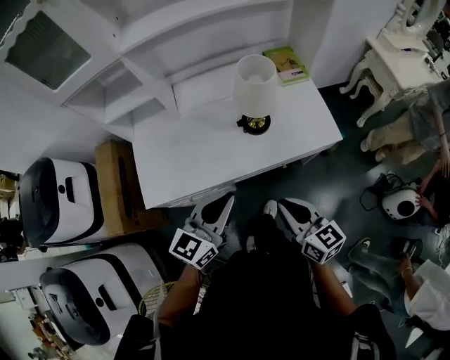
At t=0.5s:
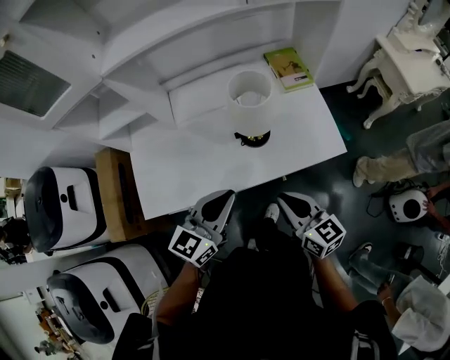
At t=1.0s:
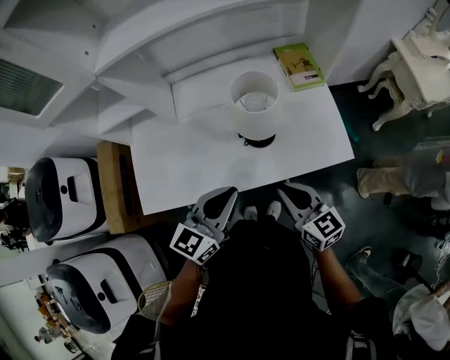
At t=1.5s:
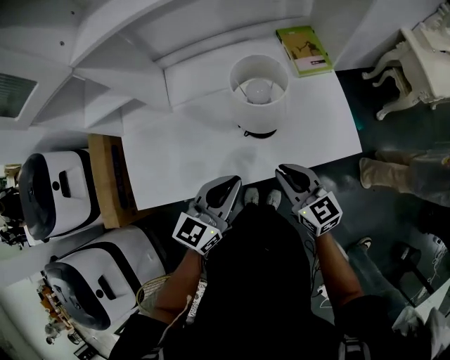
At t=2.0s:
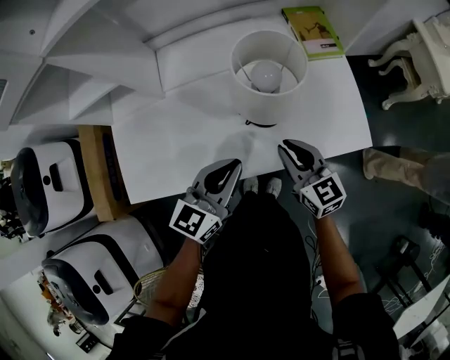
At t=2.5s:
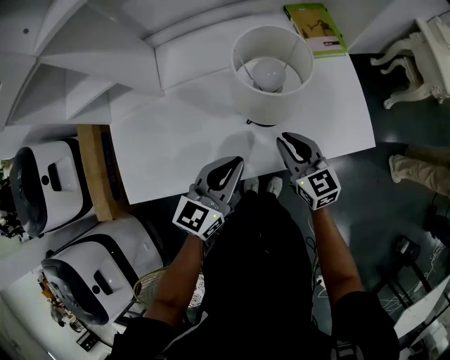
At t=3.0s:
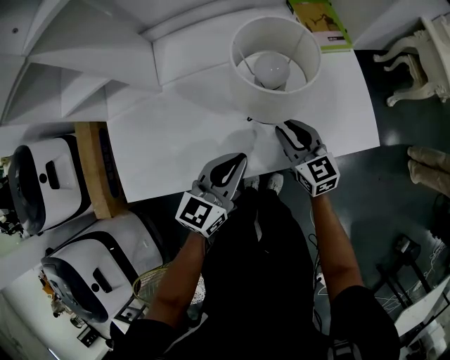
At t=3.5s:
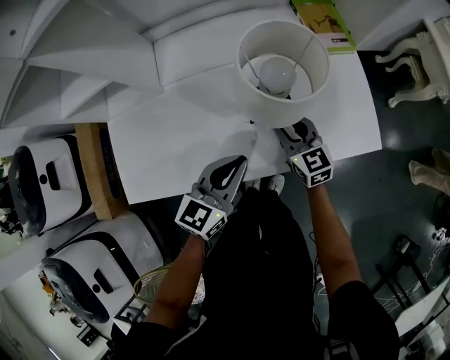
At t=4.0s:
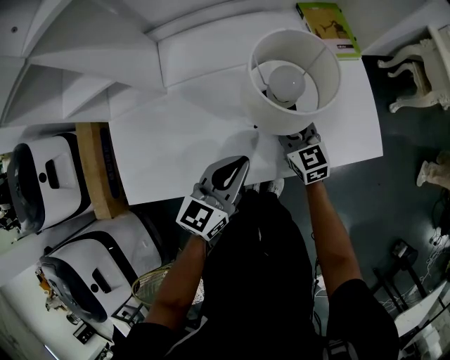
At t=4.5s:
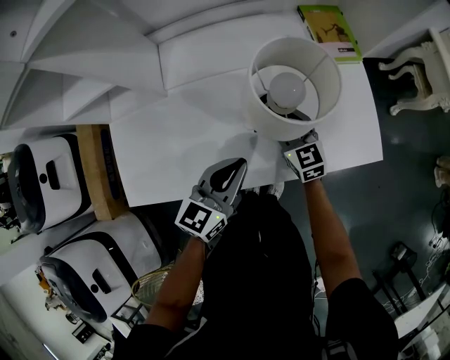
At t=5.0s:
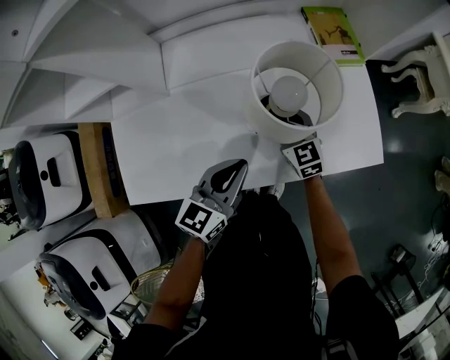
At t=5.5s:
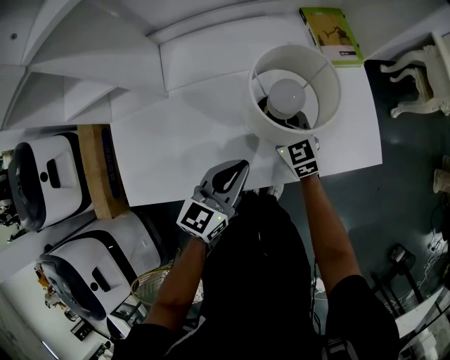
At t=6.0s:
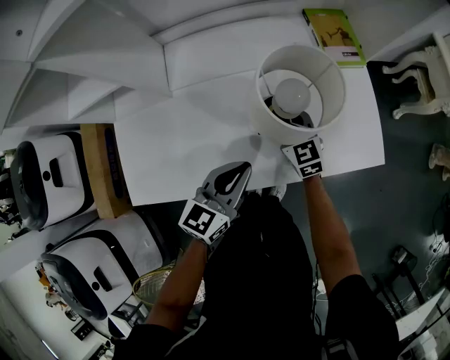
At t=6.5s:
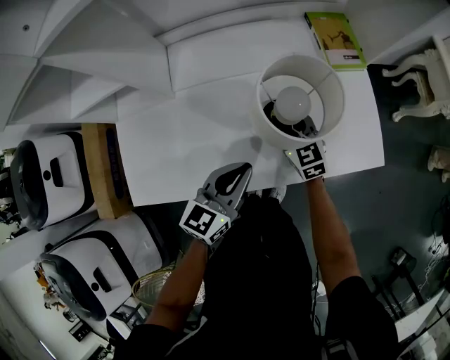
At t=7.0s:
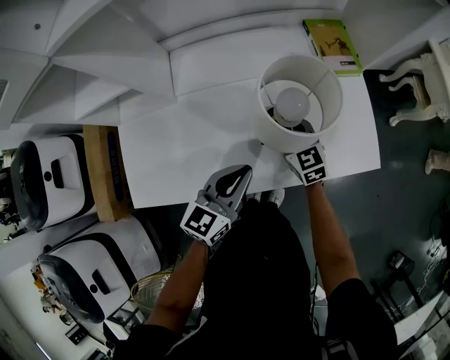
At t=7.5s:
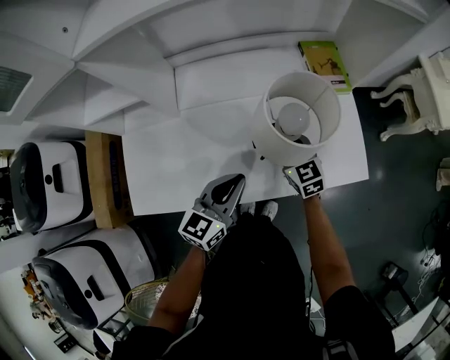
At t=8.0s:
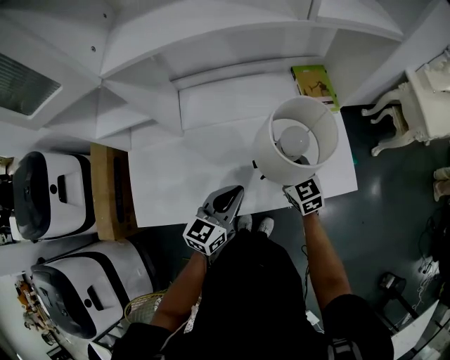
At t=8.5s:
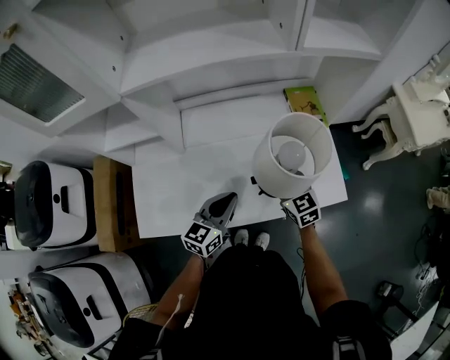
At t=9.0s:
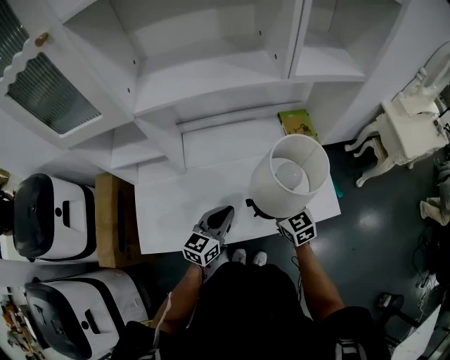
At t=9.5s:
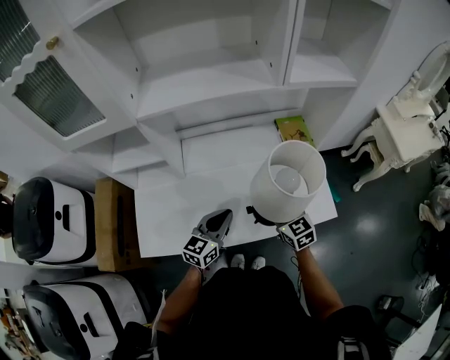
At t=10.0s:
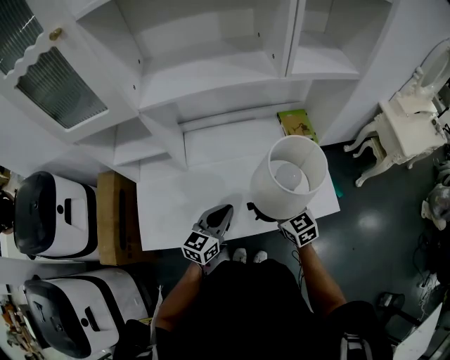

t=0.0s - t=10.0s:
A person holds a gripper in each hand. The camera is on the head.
t=0.0s - t=2.0s: Both grippers travel together forward and downward, some 25 cm.
t=2.0s - t=4.0s: The left gripper changes place by approximately 5 cm. The right gripper travels forward and downward by some 15 cm.
t=4.0s - t=6.0s: There are only small adjustments of the grippers.
t=6.0s - t=8.0s: The right gripper moves upward, some 10 cm.
t=8.0s - t=10.0s: The left gripper shifts by roughly 5 cm, while the right gripper is displaced upward and backward by about 10 cm.

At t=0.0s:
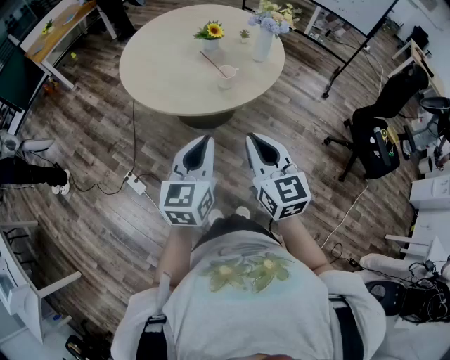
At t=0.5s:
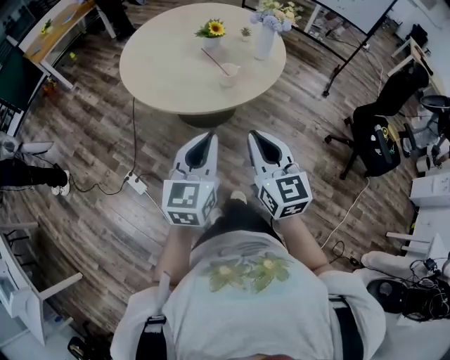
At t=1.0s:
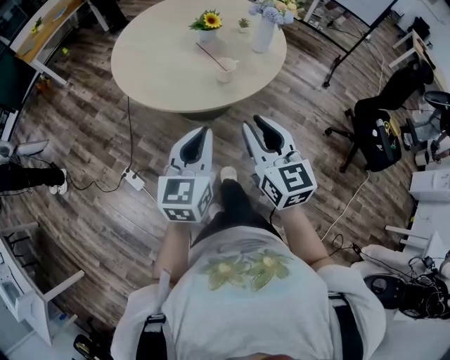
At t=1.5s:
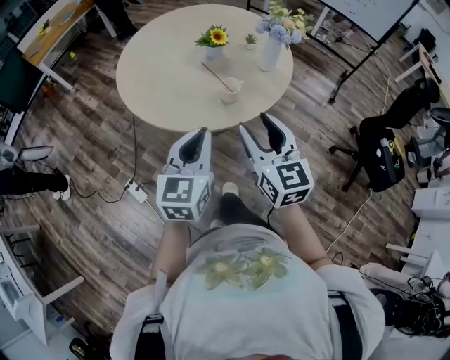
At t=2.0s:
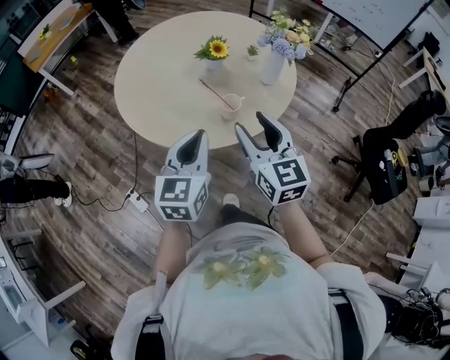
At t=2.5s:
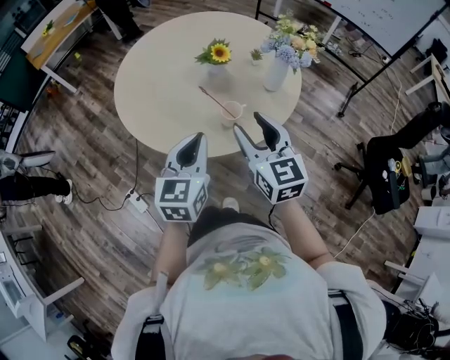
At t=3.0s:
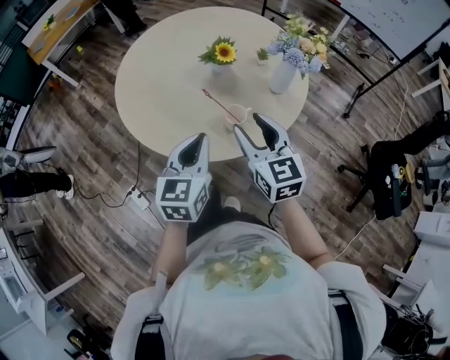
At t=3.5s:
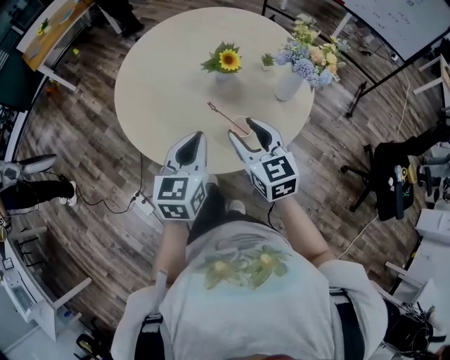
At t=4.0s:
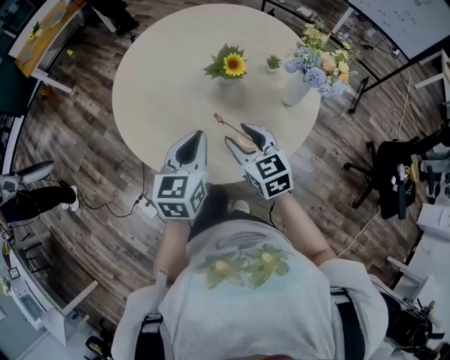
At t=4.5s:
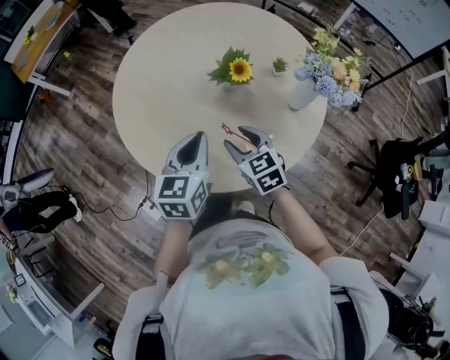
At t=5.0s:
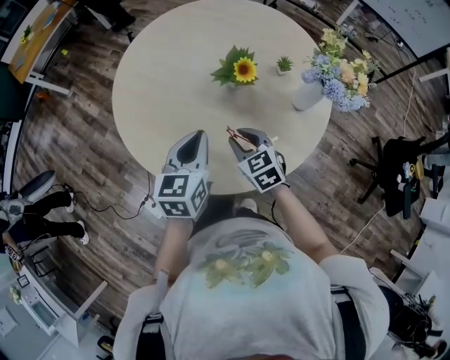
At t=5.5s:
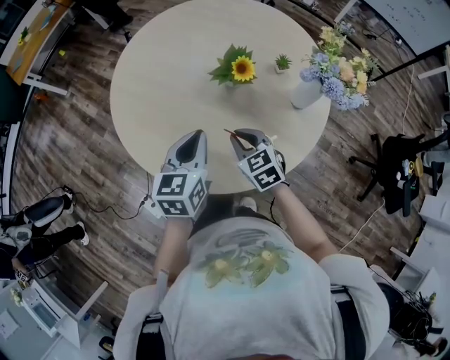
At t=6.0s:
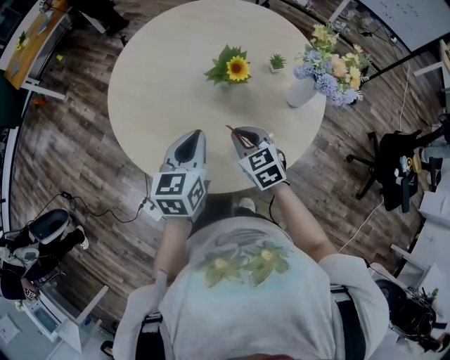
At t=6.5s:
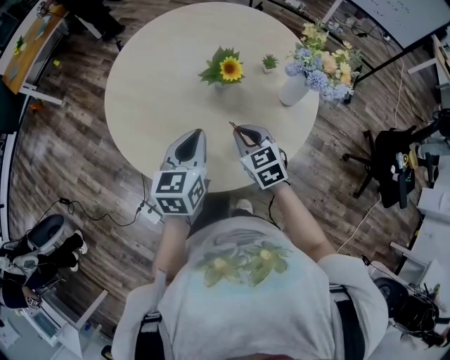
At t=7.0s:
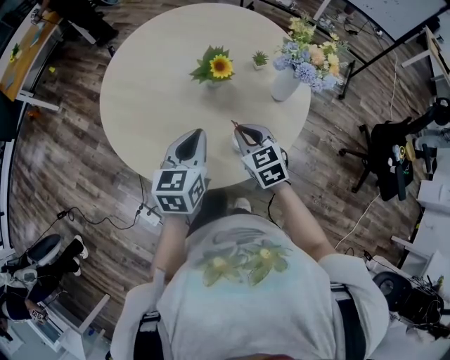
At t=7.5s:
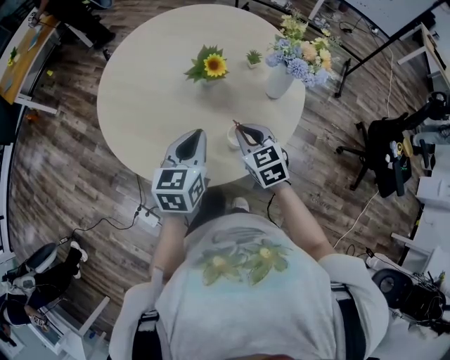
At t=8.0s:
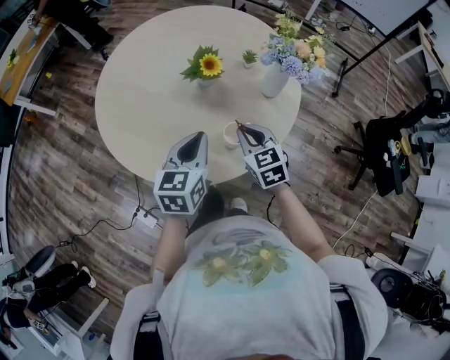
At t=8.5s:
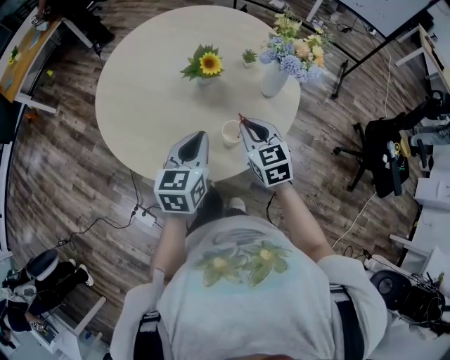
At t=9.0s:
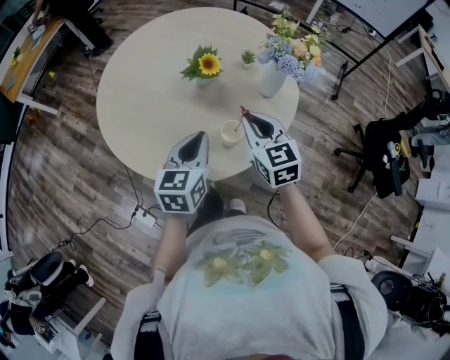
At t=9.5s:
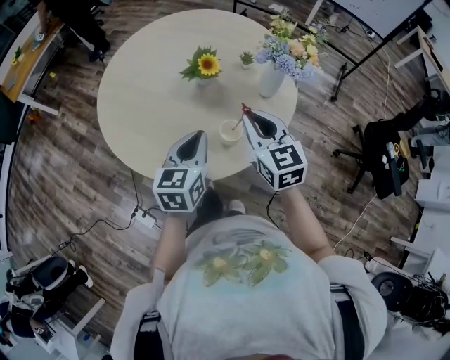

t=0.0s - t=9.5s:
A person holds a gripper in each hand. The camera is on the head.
t=0.0s - t=2.0s: Both grippers travel together forward, roughly 20 cm. The right gripper opens up.
t=2.0s - t=4.0s: The left gripper shifts roughly 20 cm forward, while the right gripper is displaced forward and downward by some 25 cm, and turns by some 20 degrees.
t=4.0s - t=5.5s: The right gripper goes some 10 cm downward and forward, and closes. The left gripper travels forward by some 5 cm.
t=5.5s - t=7.5s: Both grippers move to the right, approximately 5 cm.
t=7.5s - t=9.5s: The right gripper shifts some 10 cm upward.

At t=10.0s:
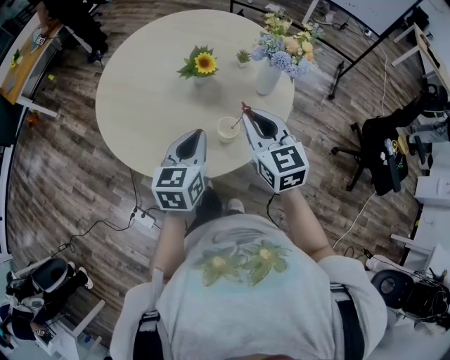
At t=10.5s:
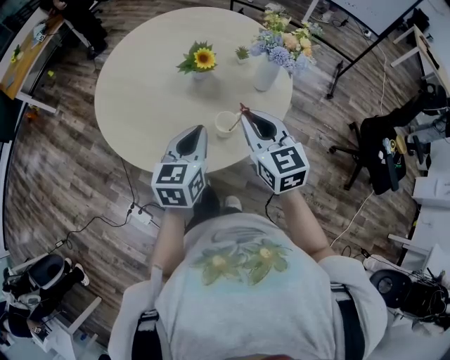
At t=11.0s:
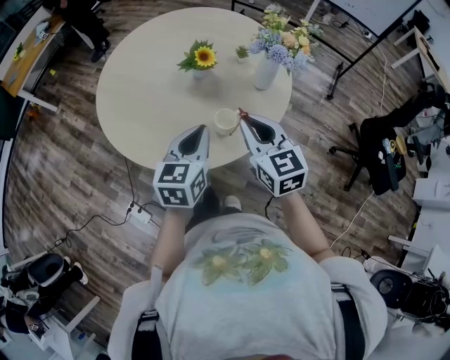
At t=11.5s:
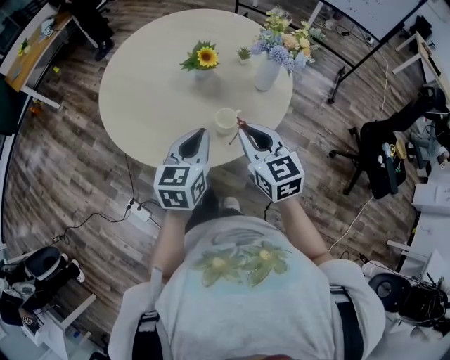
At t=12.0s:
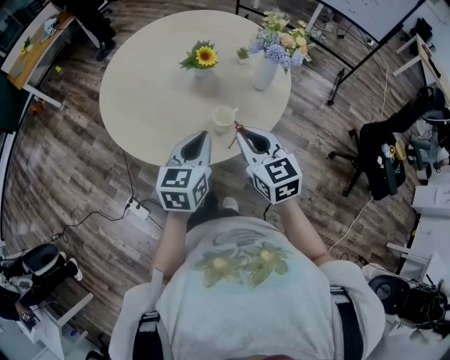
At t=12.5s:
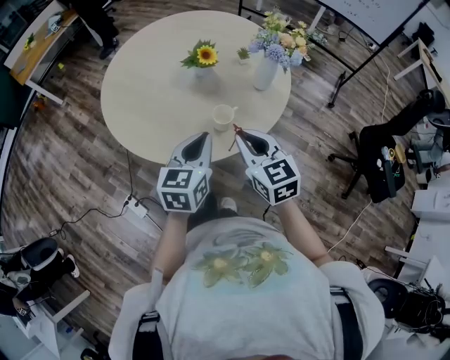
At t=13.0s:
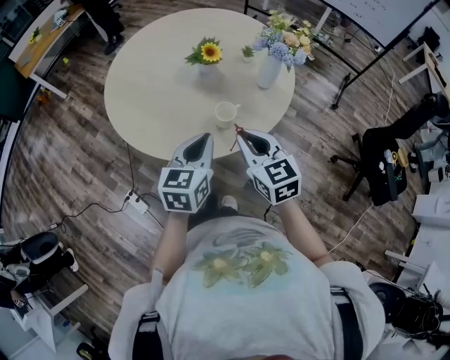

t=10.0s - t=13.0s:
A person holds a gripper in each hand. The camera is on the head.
t=10.0s - t=11.5s: The right gripper travels backward by approximately 5 cm; the left gripper ends up roughly 5 cm from where it was.
t=11.5s - t=13.0s: The grippers stay close to where they were, moving slightly.

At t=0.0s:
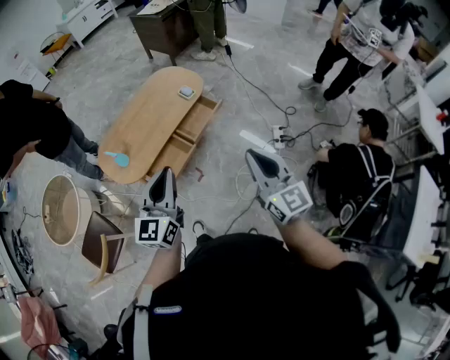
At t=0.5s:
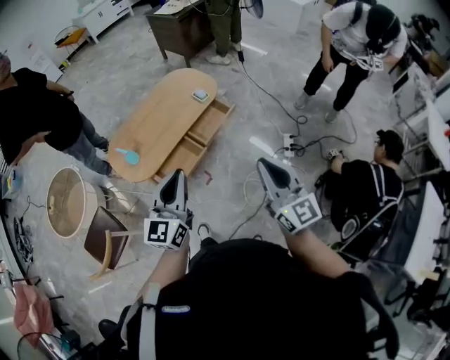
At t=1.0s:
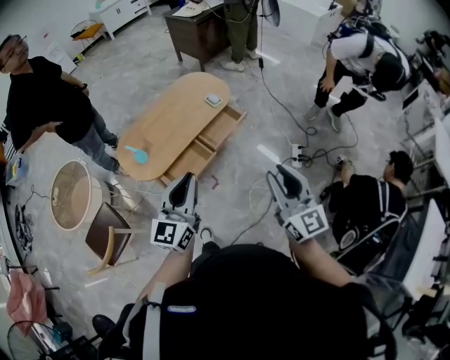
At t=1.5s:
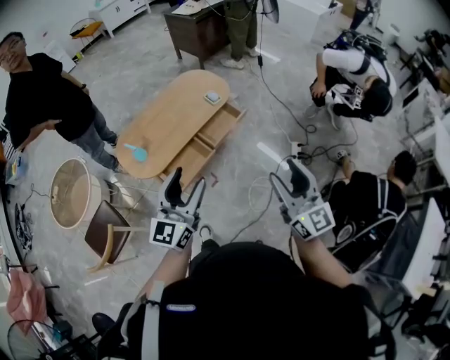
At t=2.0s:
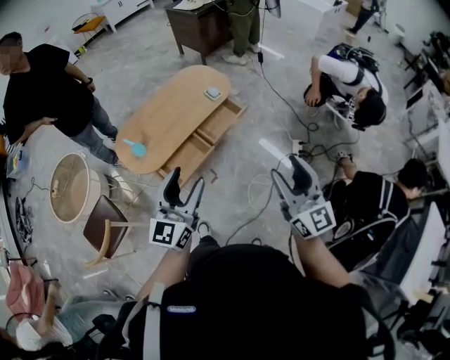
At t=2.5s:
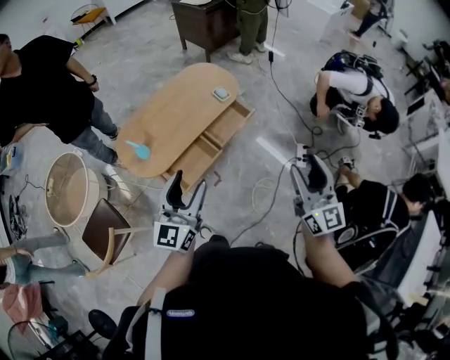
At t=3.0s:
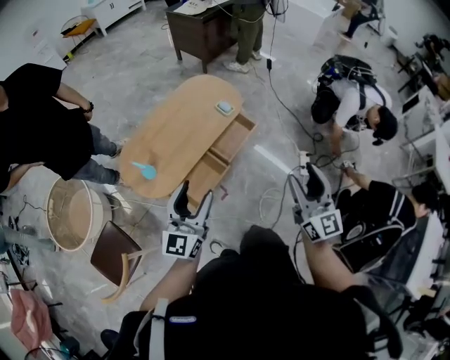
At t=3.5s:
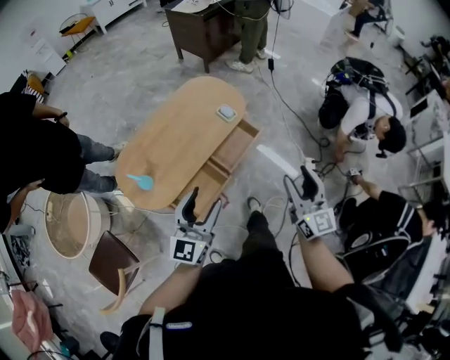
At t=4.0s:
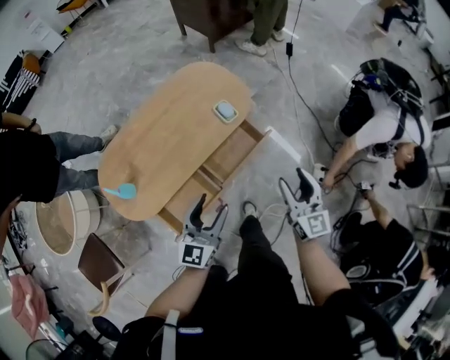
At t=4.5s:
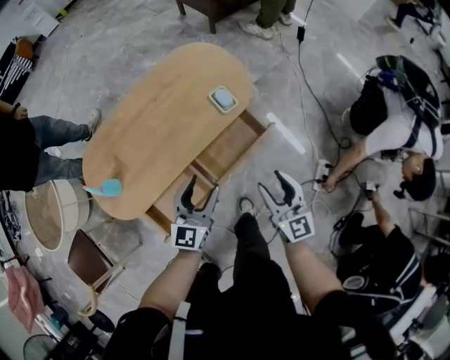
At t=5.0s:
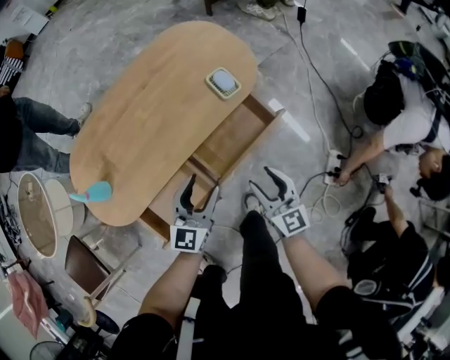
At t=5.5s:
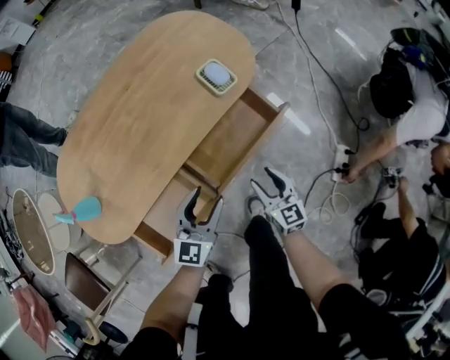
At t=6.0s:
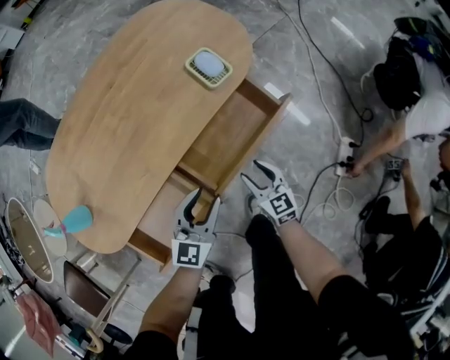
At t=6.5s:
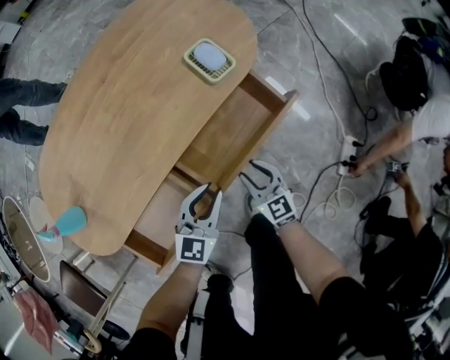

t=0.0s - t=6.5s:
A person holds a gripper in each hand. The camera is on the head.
t=0.0s - t=2.0s: The right gripper opens its fingers. Meanwhile the left gripper opens up.
t=2.0s - t=4.5s: The two grippers go some 50 cm forward and downward.
t=4.5s - t=6.5s: Both grippers travel together downward, approximately 30 cm. The left gripper closes its fingers; the right gripper changes its angle by approximately 20 degrees.
